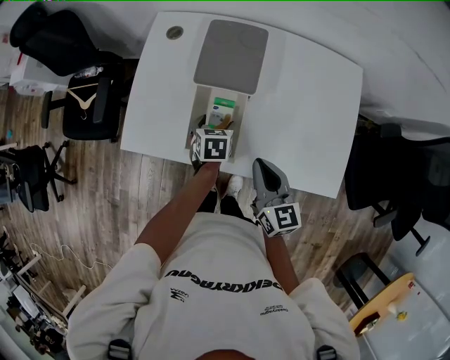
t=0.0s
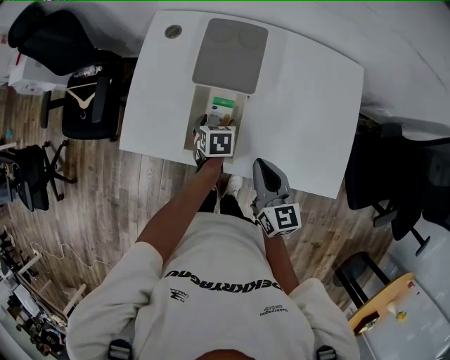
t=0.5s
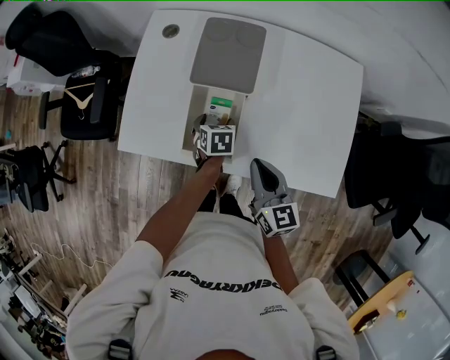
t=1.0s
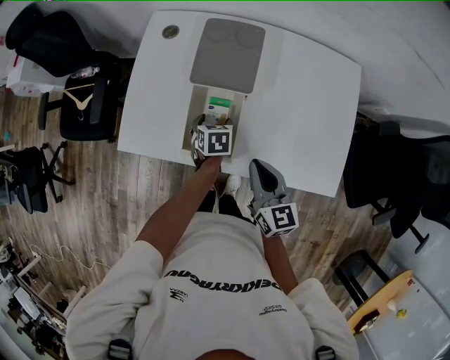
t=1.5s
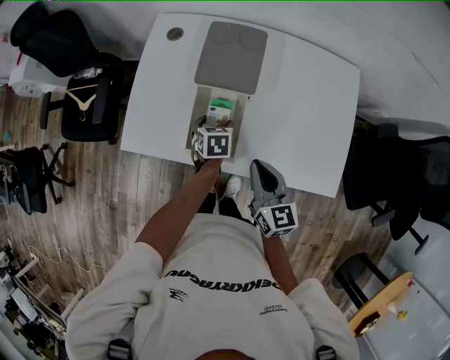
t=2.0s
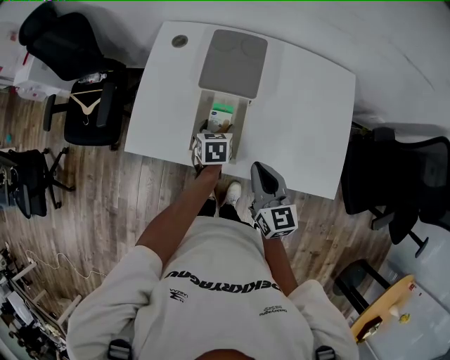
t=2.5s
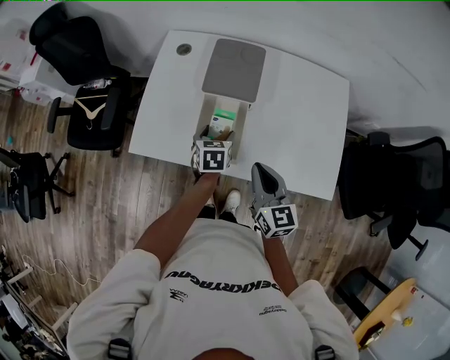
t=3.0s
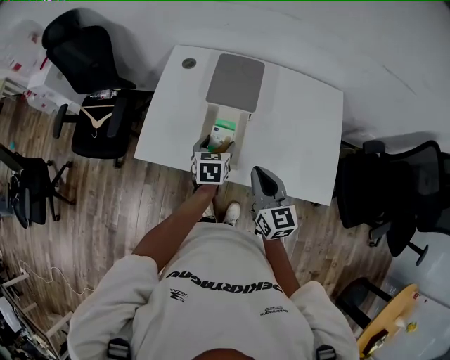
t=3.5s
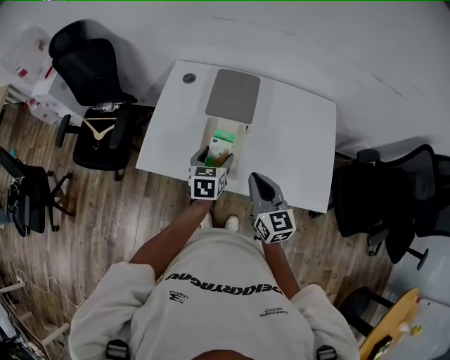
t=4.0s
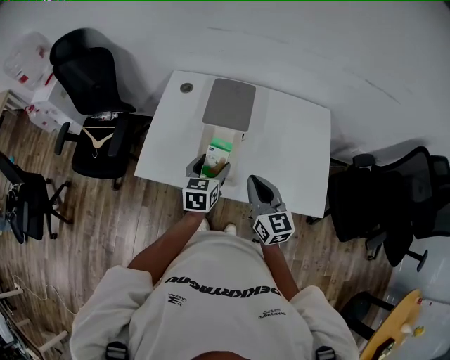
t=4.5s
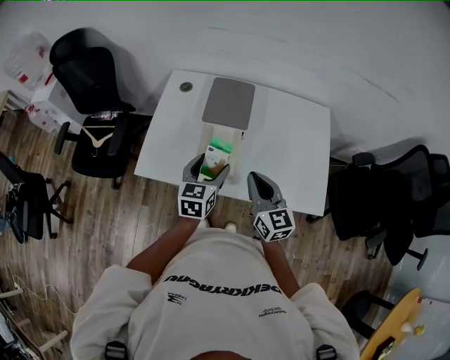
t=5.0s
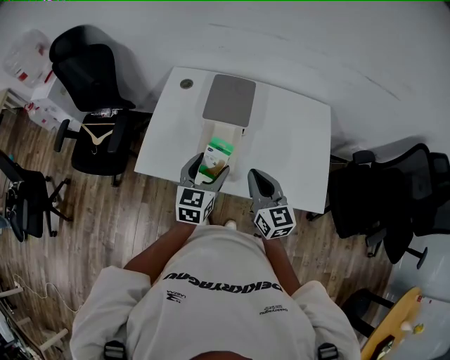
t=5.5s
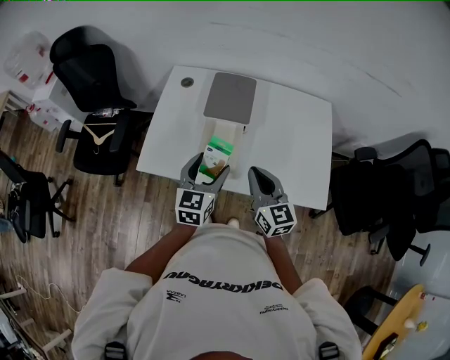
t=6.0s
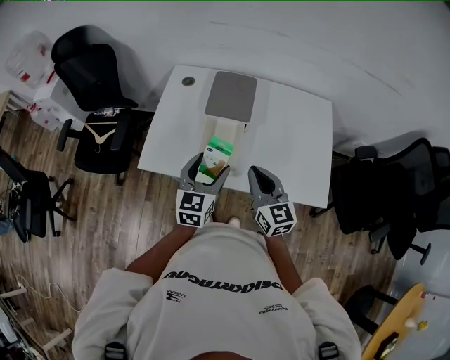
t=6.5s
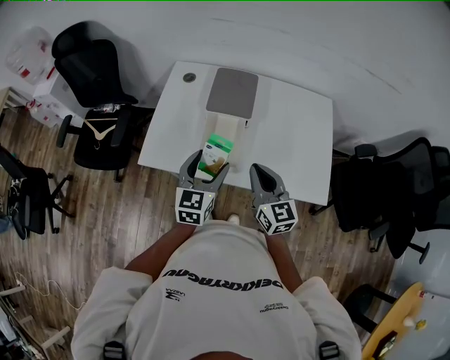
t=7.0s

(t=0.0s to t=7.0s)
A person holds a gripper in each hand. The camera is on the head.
t=0.0s - t=2.0s: There are only small adjustments of the grippers.
t=2.0s - t=3.5s: The right gripper moves upward, some 5 cm. Meanwhile the left gripper goes some 10 cm upward.
t=3.5s - t=5.0s: The left gripper shifts approximately 10 cm upward.
t=5.0s - t=7.0s: The left gripper changes place by about 5 cm.

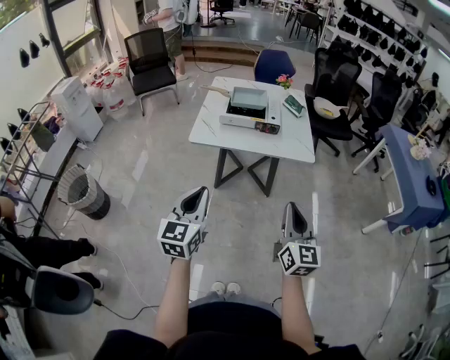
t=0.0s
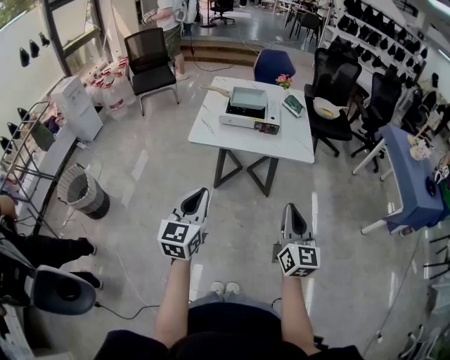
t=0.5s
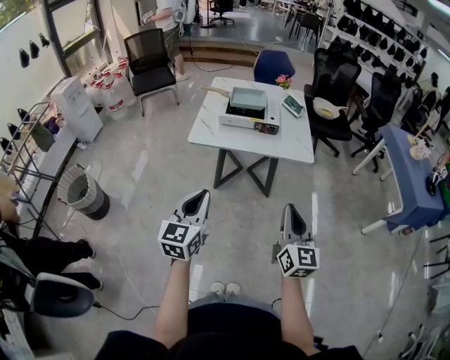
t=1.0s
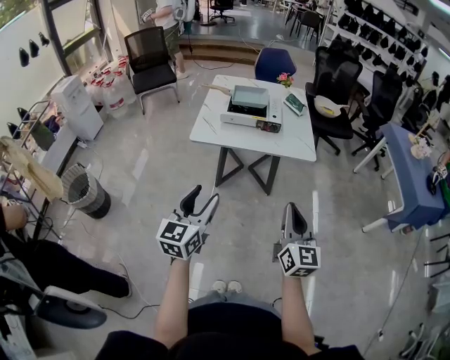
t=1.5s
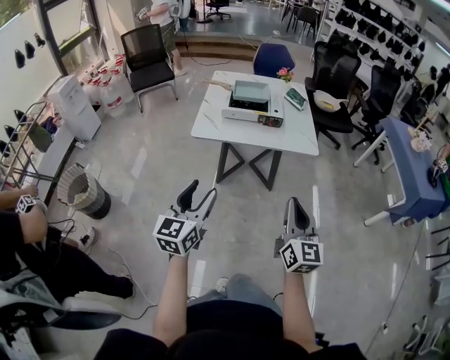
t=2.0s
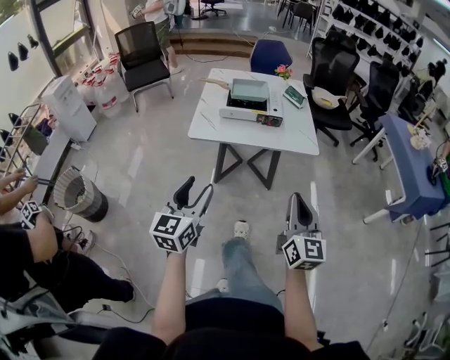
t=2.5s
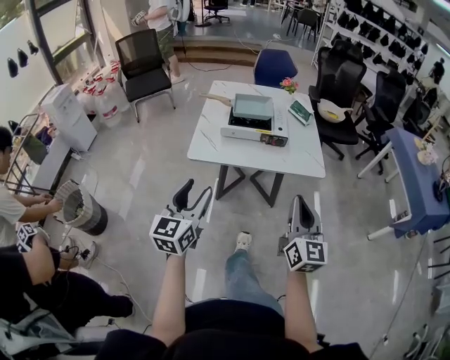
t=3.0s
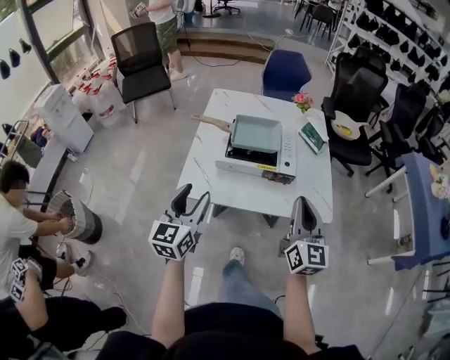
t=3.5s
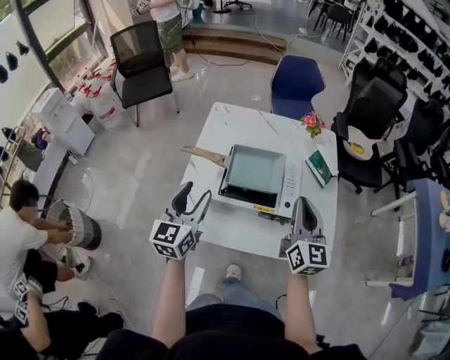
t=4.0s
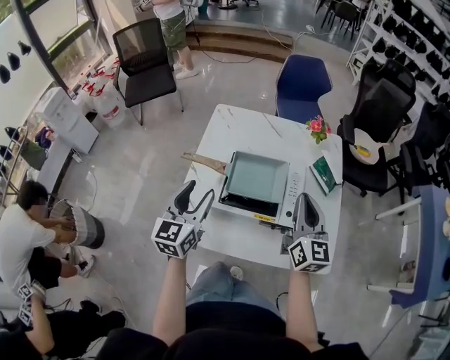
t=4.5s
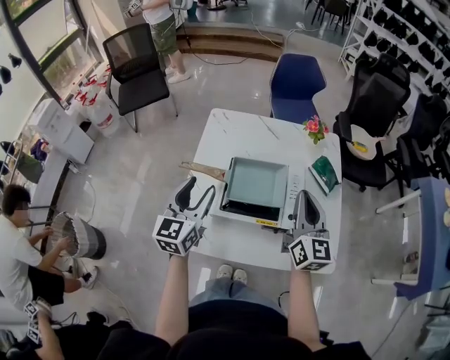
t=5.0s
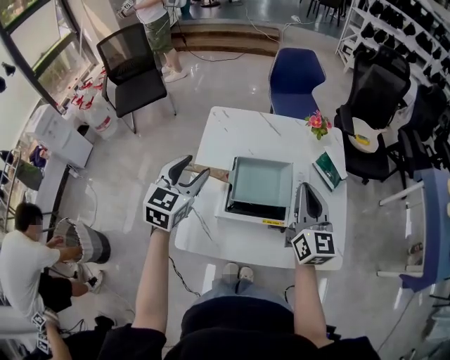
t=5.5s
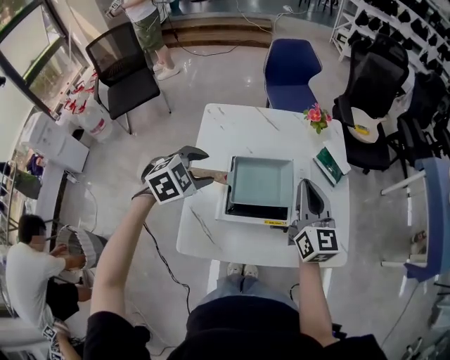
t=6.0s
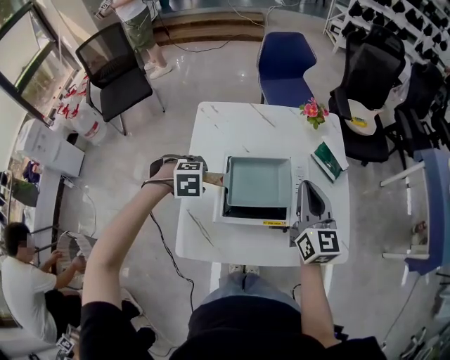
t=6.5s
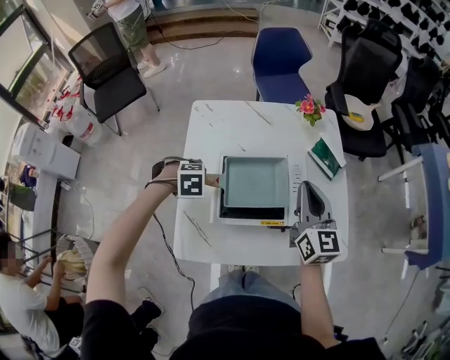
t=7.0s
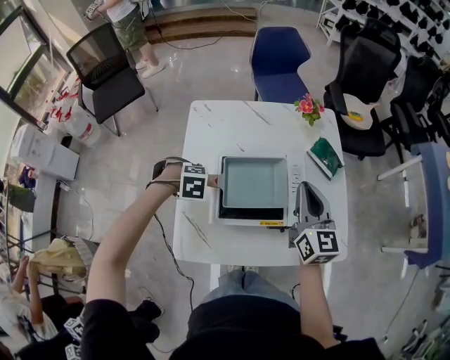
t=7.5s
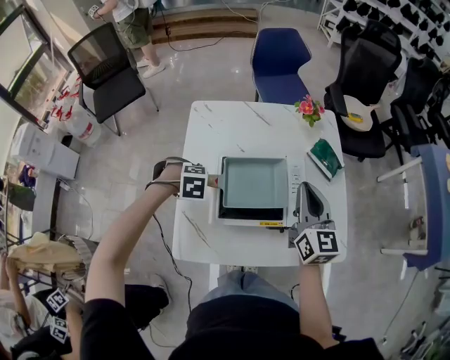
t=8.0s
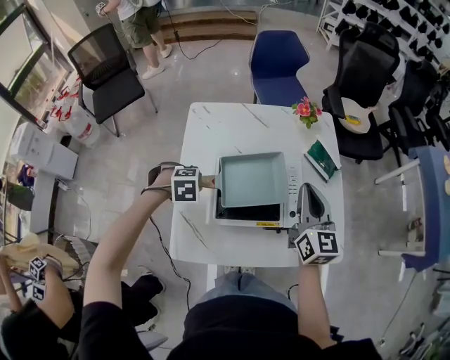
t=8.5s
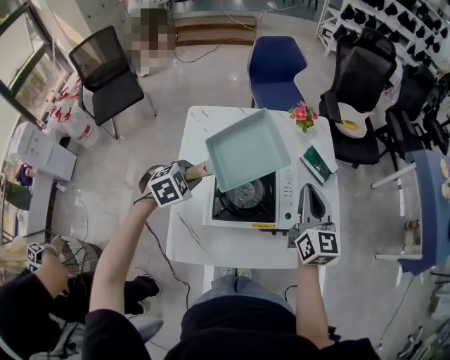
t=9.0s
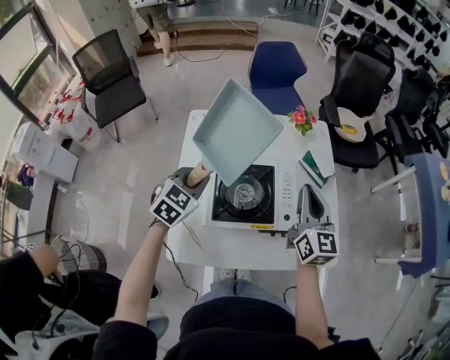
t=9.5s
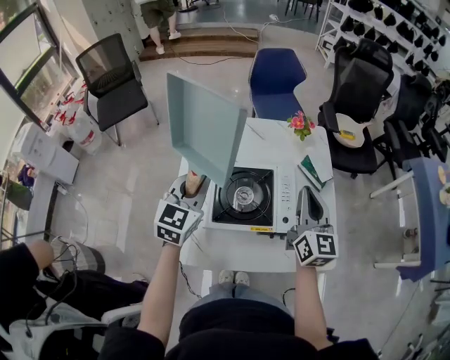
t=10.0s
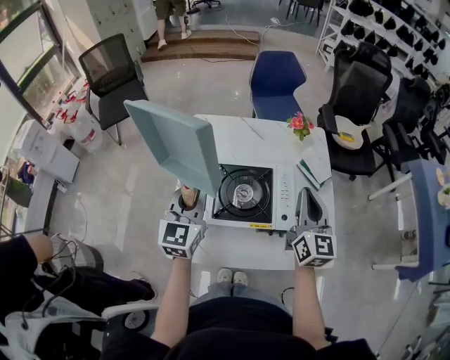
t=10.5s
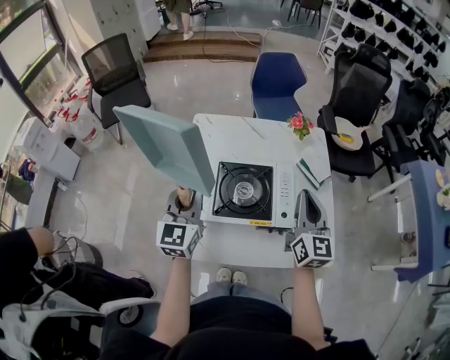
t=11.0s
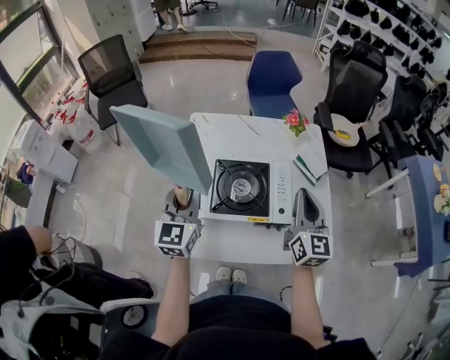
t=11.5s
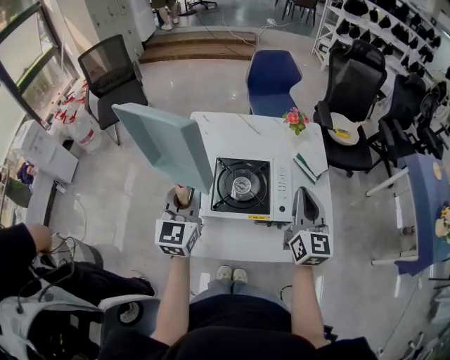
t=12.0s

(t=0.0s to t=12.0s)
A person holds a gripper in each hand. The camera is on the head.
t=0.0s - t=2.0s: The left gripper opens.
t=2.0s - t=4.0s: Both grippers are carried forward, roughly 60 cm.
t=4.0s - t=6.0s: The right gripper travels forward by roughly 10 cm. The left gripper shifts about 15 cm forward, and tips its fingers downward by some 50 degrees.
t=6.0s - t=8.0s: The left gripper moves downward, some 15 cm, points its fingers about 30 degrees further downward, and closes its fingers.
t=8.0s - t=10.0s: The left gripper is displaced upward by approximately 20 cm, and angles its fingers upward, by approximately 70 degrees.
t=10.0s - t=12.0s: Both grippers move backward, roughly 5 cm.

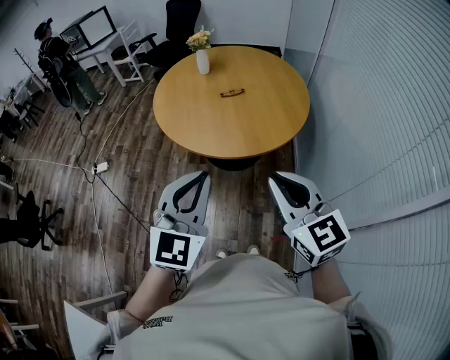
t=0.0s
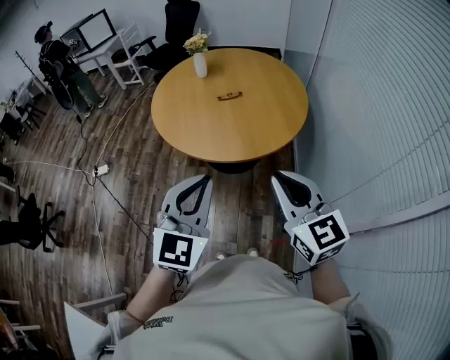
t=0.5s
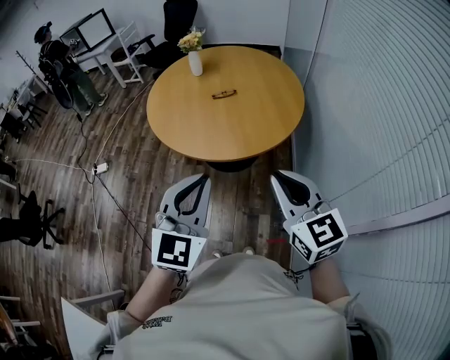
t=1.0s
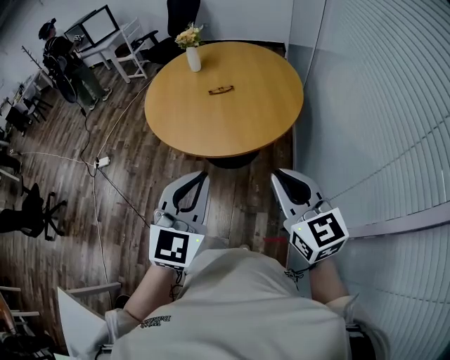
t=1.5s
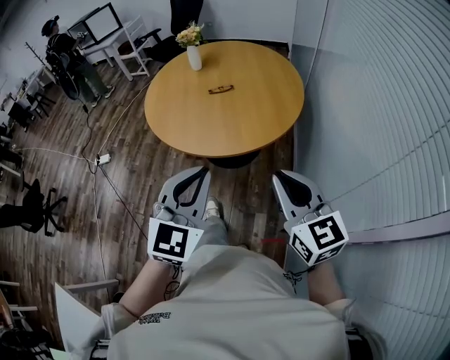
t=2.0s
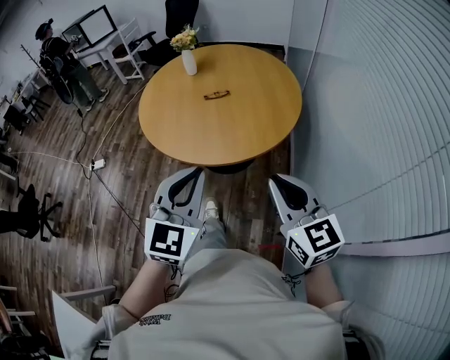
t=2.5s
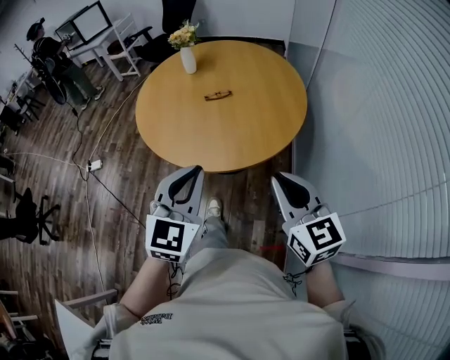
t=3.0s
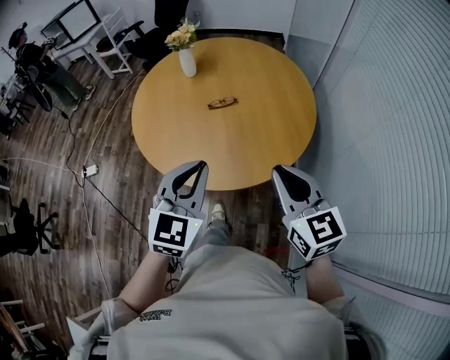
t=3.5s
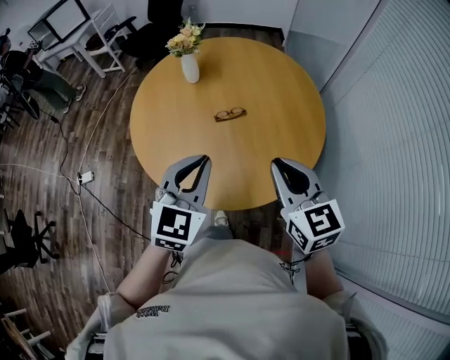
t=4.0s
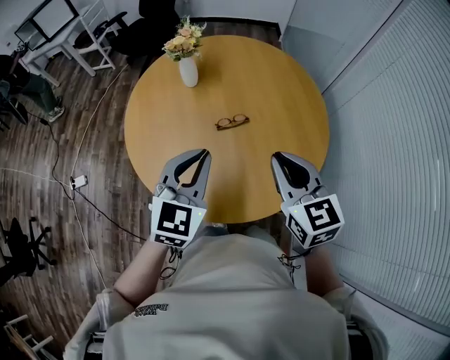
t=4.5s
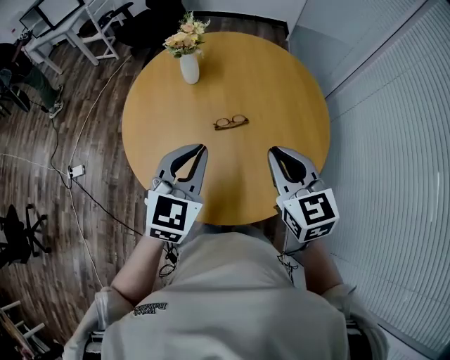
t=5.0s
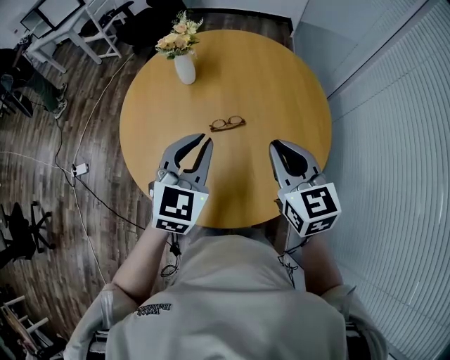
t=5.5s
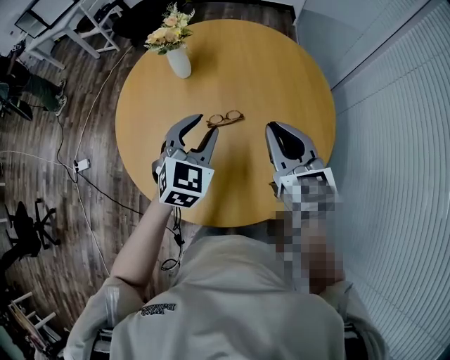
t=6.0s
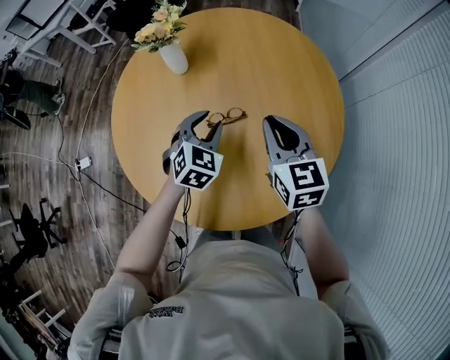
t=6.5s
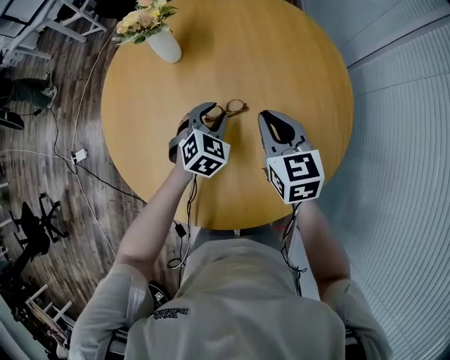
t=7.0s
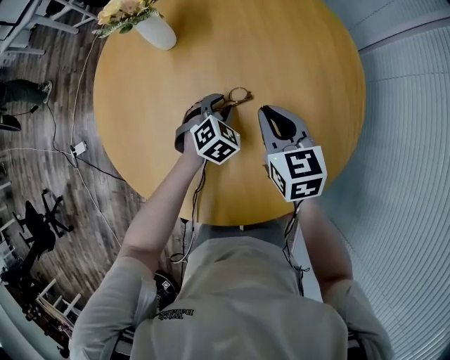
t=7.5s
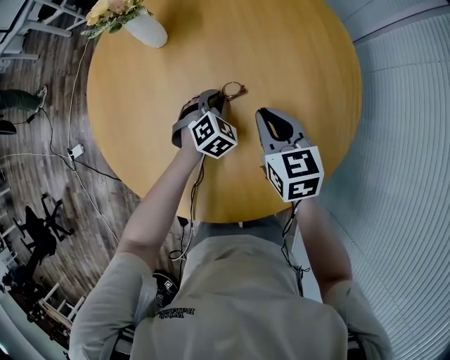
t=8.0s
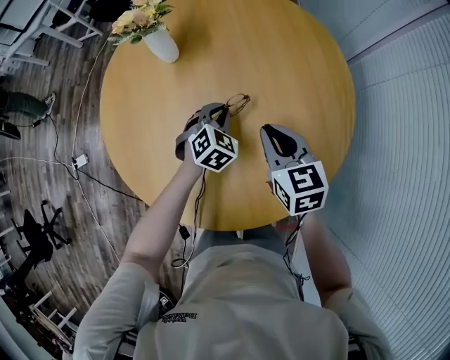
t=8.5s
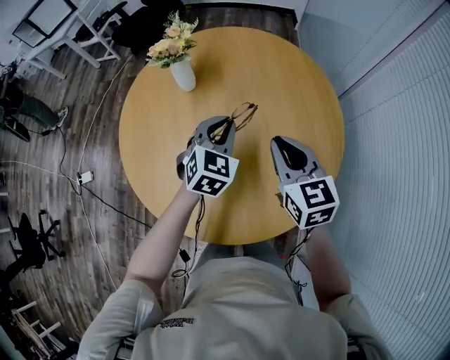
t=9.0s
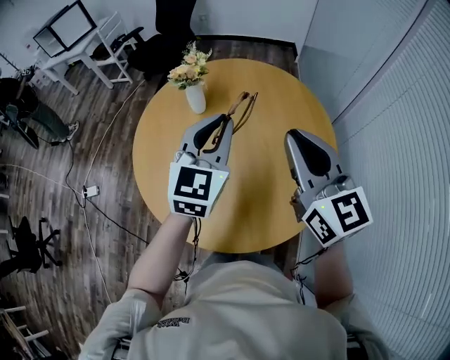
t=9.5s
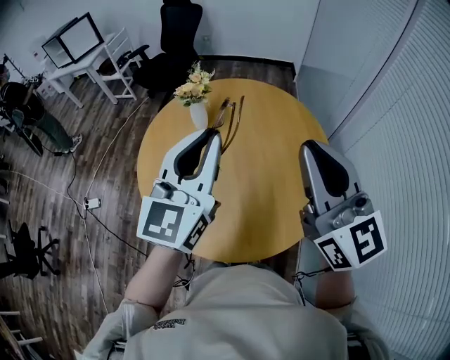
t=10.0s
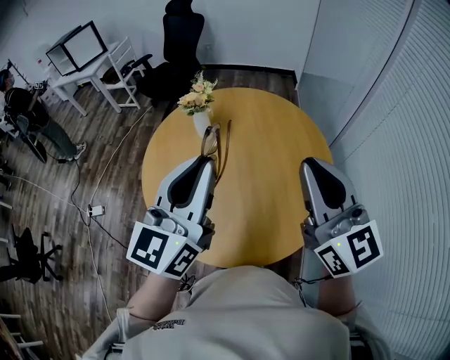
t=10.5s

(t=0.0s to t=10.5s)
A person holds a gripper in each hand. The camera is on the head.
t=0.0s - t=2.0s: Both grippers move to the right, roughly 15 cm.
t=2.0s - t=4.0s: Both grippers travel together forward, roughly 35 cm.
t=4.0s - t=6.5s: Both grippers move forward and downward, roughly 30 cm. The left gripper changes its angle by roughly 20 degrees, and opens up.
t=6.5s - t=8.5s: Both grippers travel together downward, about 10 cm. The left gripper closes.
t=8.5s - t=10.5s: Both grippers move upward, roughly 40 cm. The left gripper tips its fingers upward by approximately 60 degrees. The right gripper tips its fingers upward by some 40 degrees.
